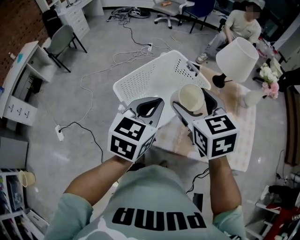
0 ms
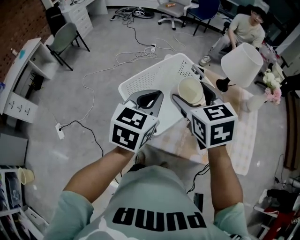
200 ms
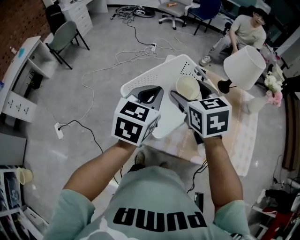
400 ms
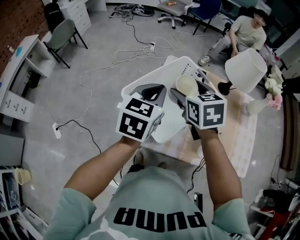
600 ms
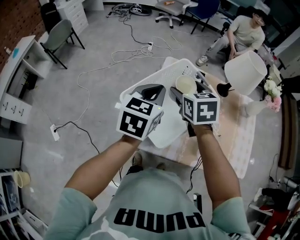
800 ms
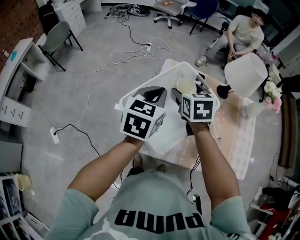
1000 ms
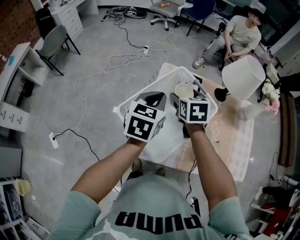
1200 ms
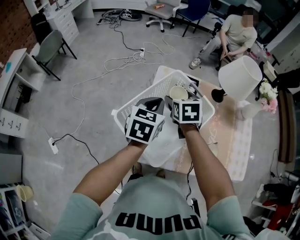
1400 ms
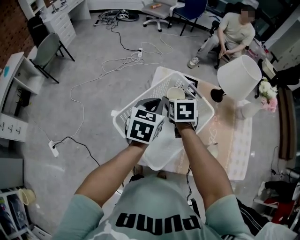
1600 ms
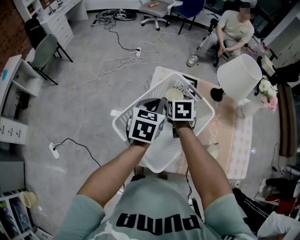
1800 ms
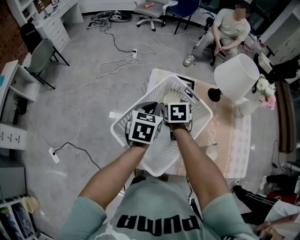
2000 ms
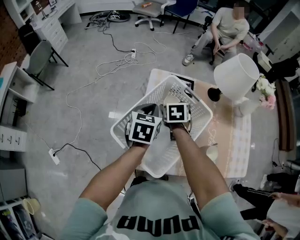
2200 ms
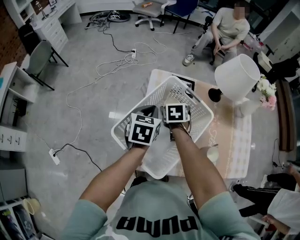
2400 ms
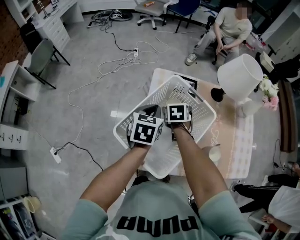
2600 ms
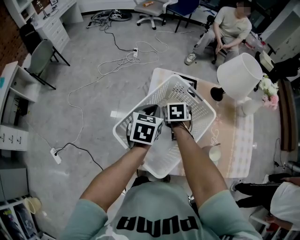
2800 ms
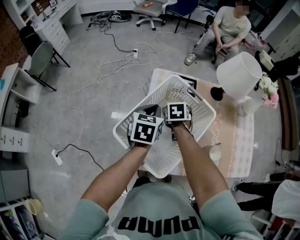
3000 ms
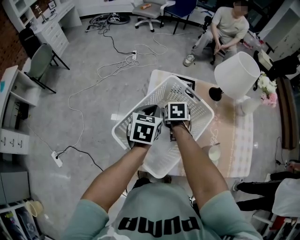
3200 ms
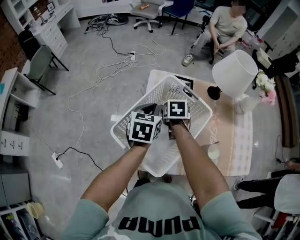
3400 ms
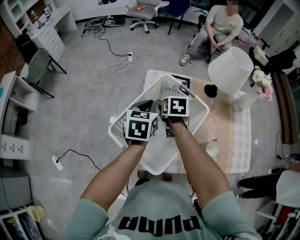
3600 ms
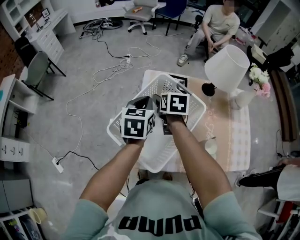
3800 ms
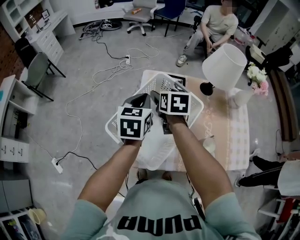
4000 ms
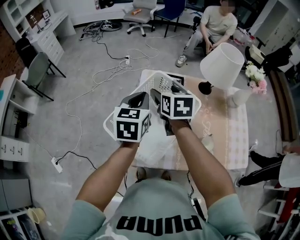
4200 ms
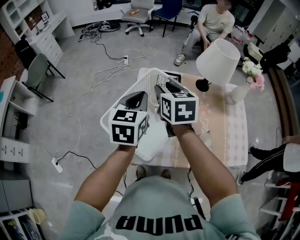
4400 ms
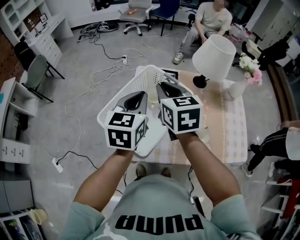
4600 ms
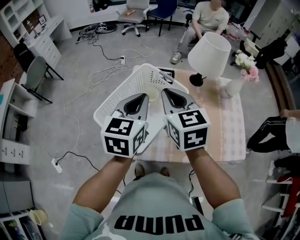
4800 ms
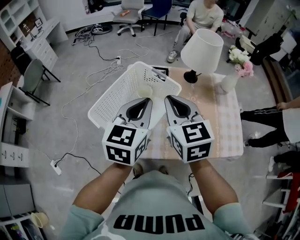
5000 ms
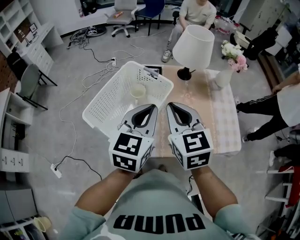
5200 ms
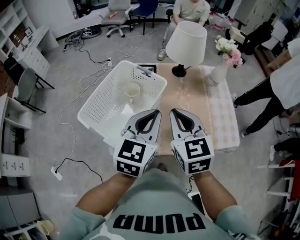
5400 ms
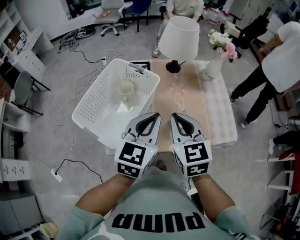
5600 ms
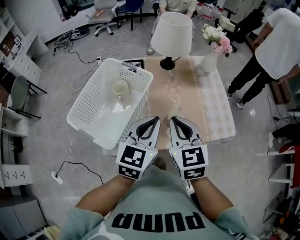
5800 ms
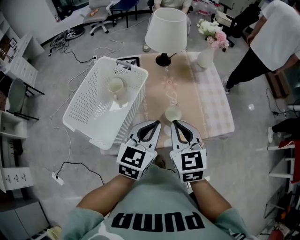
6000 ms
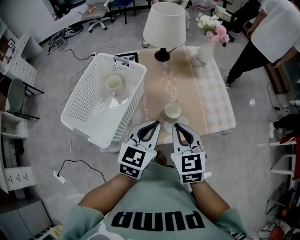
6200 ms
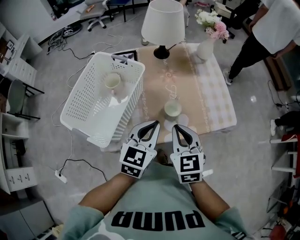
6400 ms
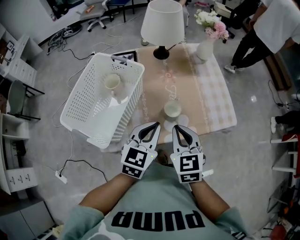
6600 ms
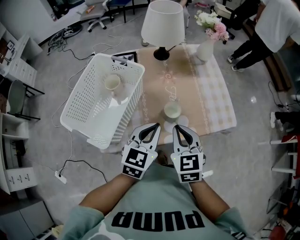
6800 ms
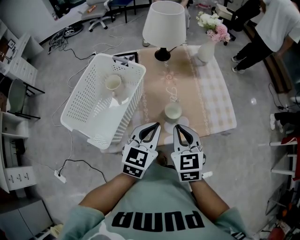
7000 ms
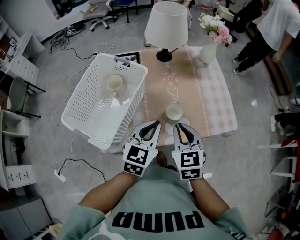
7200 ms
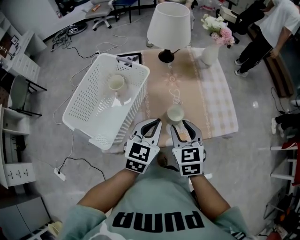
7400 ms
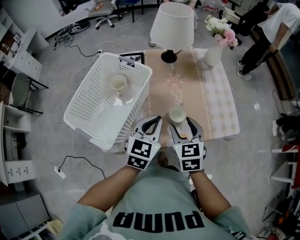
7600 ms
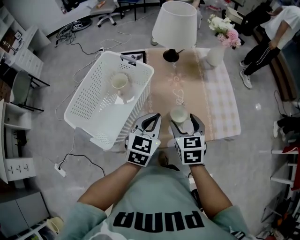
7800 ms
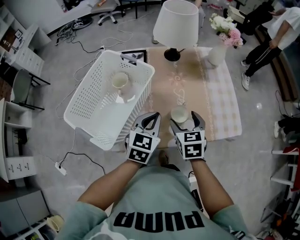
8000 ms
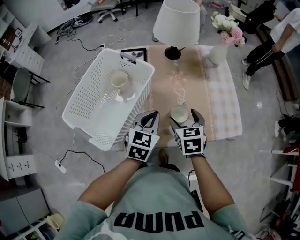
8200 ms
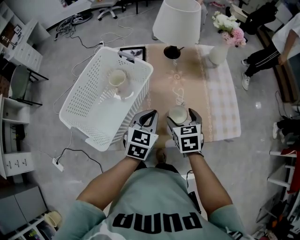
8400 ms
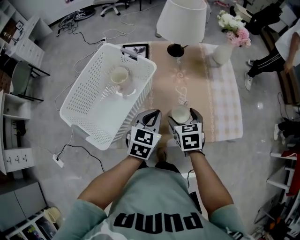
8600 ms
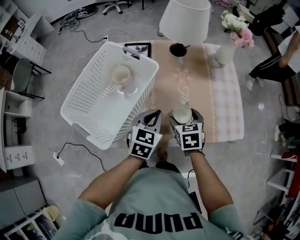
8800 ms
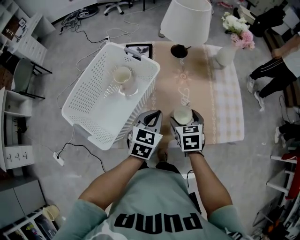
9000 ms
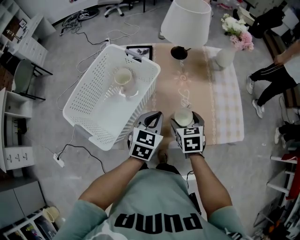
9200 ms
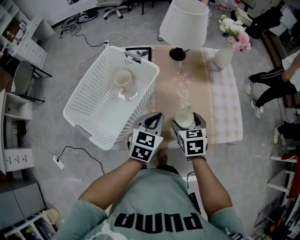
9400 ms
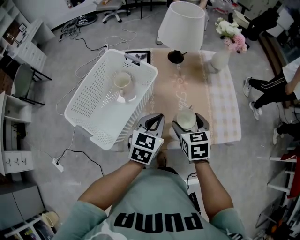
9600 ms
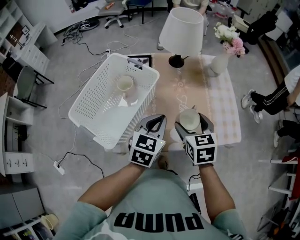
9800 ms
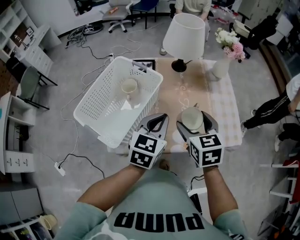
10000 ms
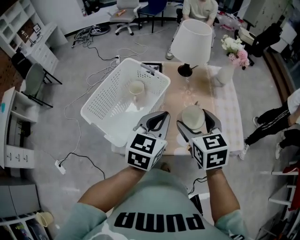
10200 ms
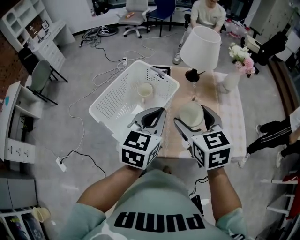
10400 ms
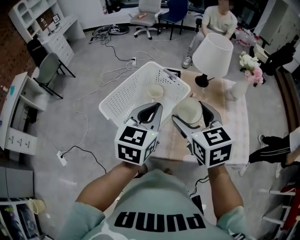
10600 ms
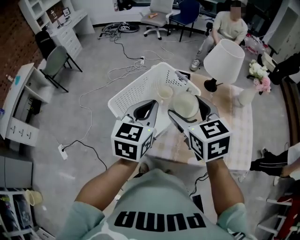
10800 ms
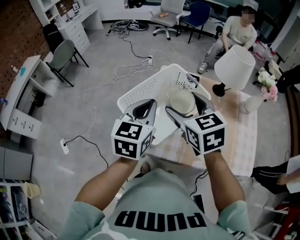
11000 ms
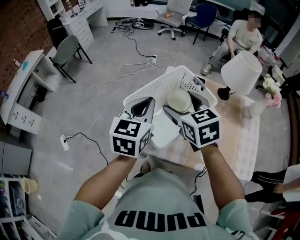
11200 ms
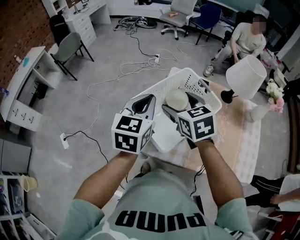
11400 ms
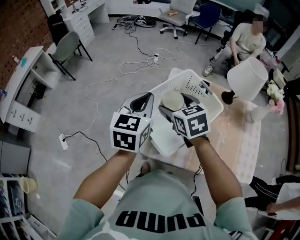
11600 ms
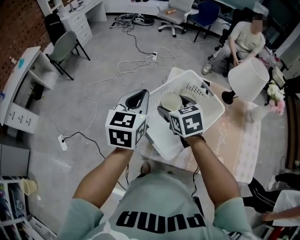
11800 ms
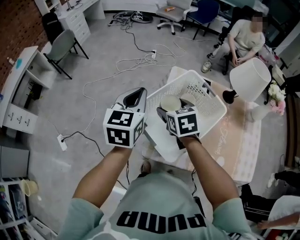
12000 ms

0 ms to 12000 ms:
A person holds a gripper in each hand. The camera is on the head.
0 ms to 1600 ms: The two grippers go some 20 cm forward and downward. The right gripper turns by some 30 degrees.
1600 ms to 3000 ms: The left gripper moves approximately 5 cm. The right gripper goes roughly 10 cm downward.
3000 ms to 4400 ms: The right gripper heads upward, covering some 20 cm, tips its fingers upward by some 30 degrees, and closes. Meanwhile the left gripper goes approximately 10 cm upward.
4400 ms to 6000 ms: The two grippers go approximately 30 cm to the right and backward. The left gripper turns by roughly 30 degrees. Meanwhile the right gripper closes.
6000 ms to 7600 ms: The right gripper travels downward by roughly 10 cm, and opens its fingers. The left gripper moves downward, approximately 5 cm.
7600 ms to 9000 ms: The left gripper moves downward, some 5 cm. The right gripper moves downward and forward, roughly 10 cm, and opens its fingers.
9000 ms to 10400 ms: Both grippers travel together upward, roughly 20 cm. The right gripper rotates about 20 degrees.
10400 ms to 12000 ms: The left gripper moves to the left and forward, about 30 cm, and swivels approximately 20 degrees, while the right gripper travels to the left, forward and downward by some 30 cm, and turns by about 20 degrees.

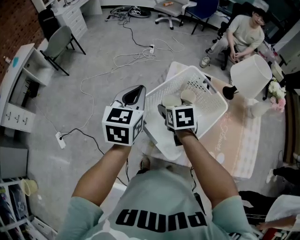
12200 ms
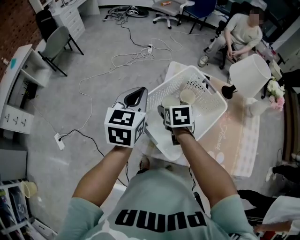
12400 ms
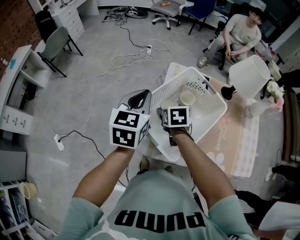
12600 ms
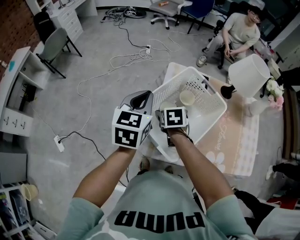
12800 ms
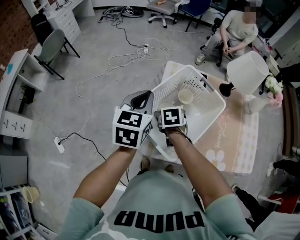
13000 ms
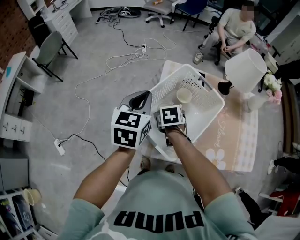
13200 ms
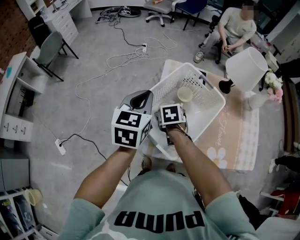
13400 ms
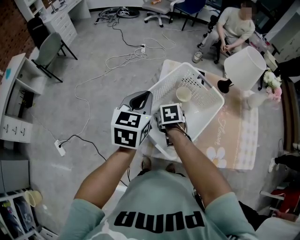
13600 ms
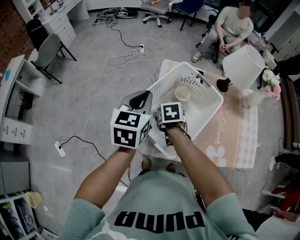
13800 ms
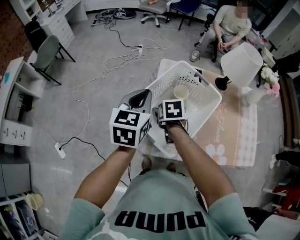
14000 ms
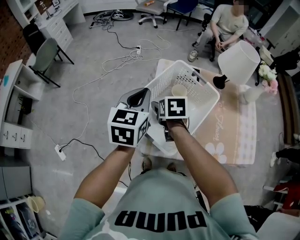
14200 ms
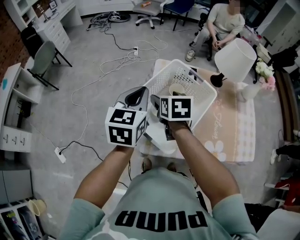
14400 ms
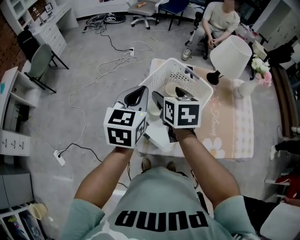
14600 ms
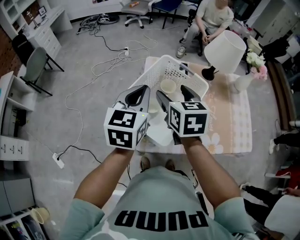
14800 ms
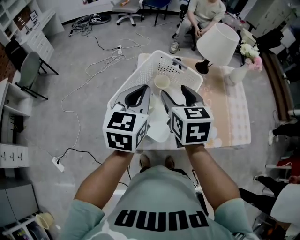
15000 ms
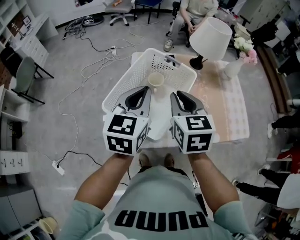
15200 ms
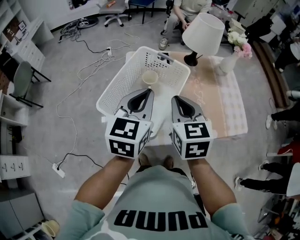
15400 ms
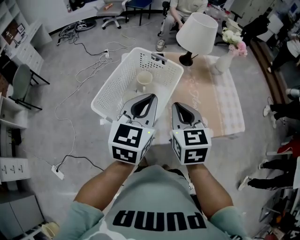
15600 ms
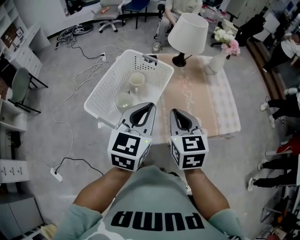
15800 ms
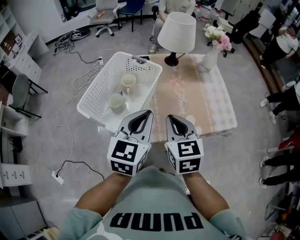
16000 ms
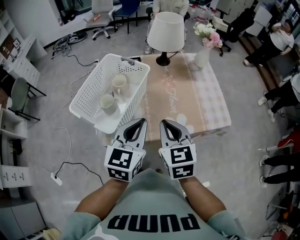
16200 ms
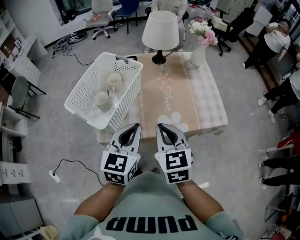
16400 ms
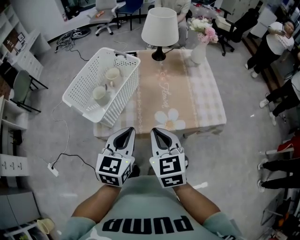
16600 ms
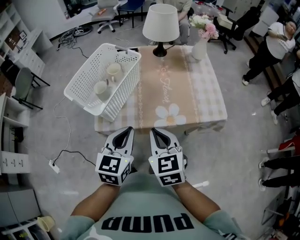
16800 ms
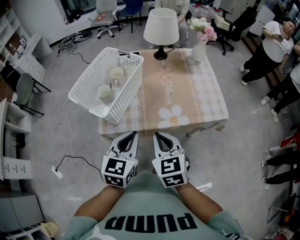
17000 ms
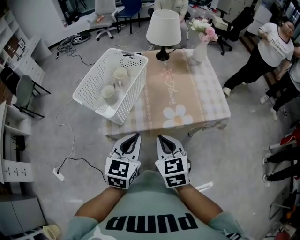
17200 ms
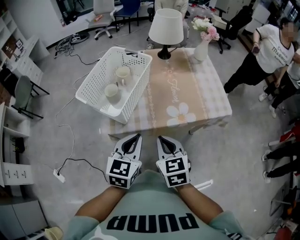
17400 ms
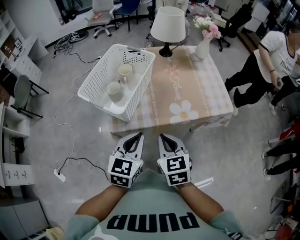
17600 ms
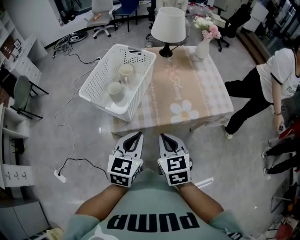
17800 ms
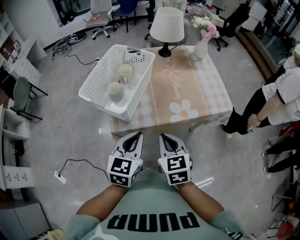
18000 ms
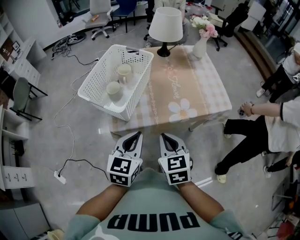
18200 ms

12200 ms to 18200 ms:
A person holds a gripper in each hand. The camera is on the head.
12200 ms to 13800 ms: The right gripper is displaced downward by roughly 10 cm.
13800 ms to 15200 ms: The left gripper goes about 10 cm to the right, while the right gripper travels upward and to the right by about 25 cm, tips its fingers upward by roughly 40 degrees, and closes its fingers.
15200 ms to 16600 ms: The grippers both shift to the right and backward by roughly 25 cm.
16600 ms to 18200 ms: The right gripper travels backward and to the left by some 10 cm; the left gripper goes about 10 cm to the left and backward.

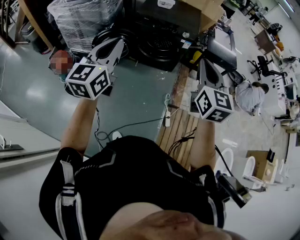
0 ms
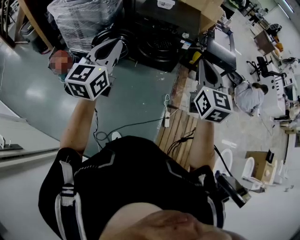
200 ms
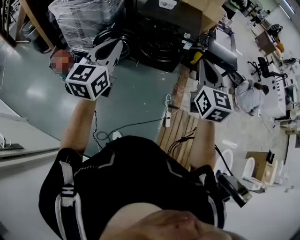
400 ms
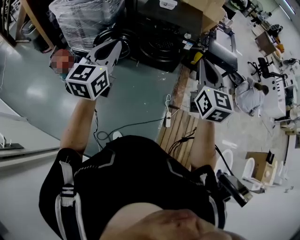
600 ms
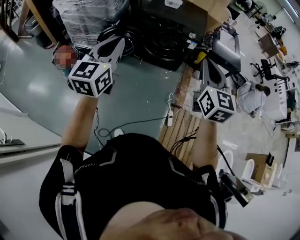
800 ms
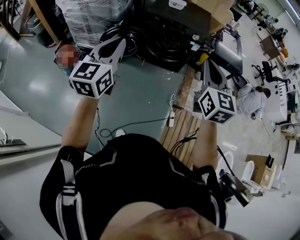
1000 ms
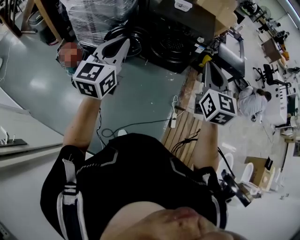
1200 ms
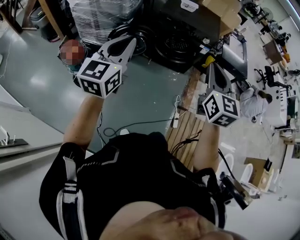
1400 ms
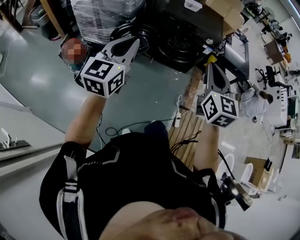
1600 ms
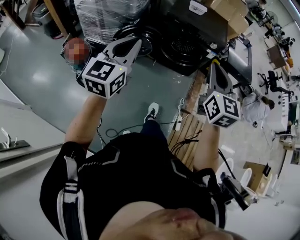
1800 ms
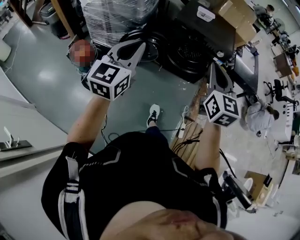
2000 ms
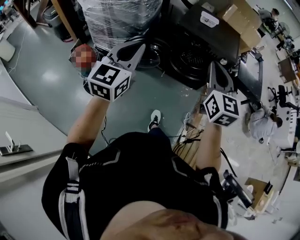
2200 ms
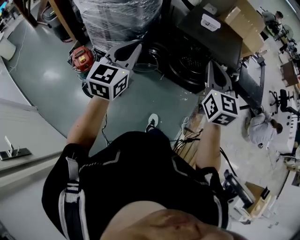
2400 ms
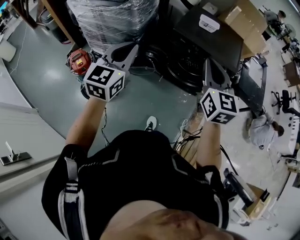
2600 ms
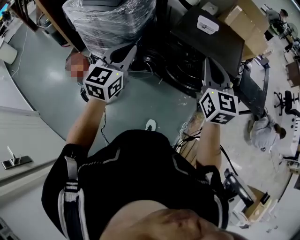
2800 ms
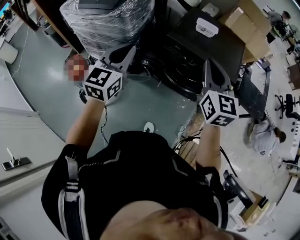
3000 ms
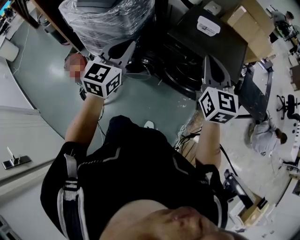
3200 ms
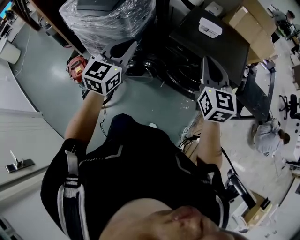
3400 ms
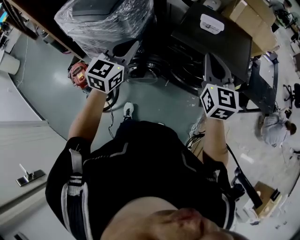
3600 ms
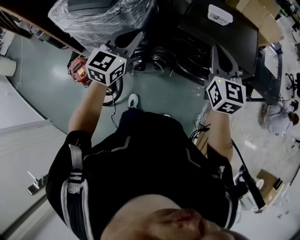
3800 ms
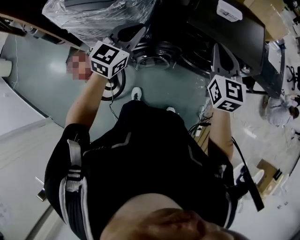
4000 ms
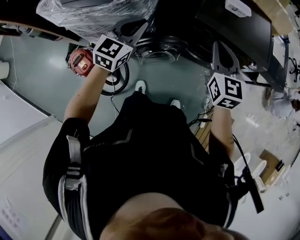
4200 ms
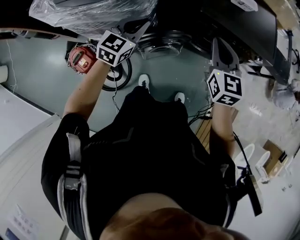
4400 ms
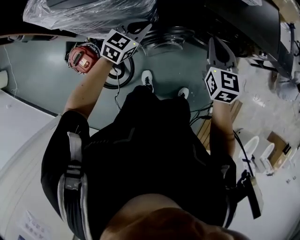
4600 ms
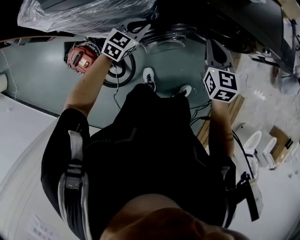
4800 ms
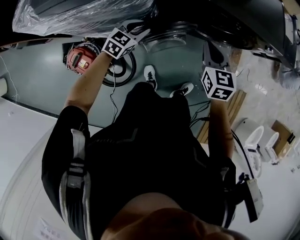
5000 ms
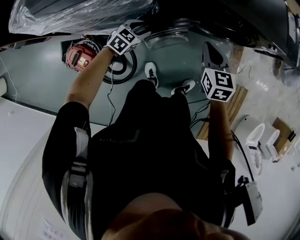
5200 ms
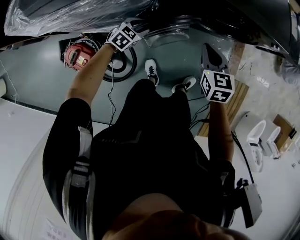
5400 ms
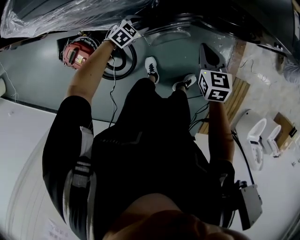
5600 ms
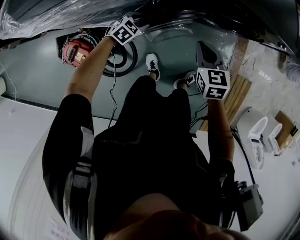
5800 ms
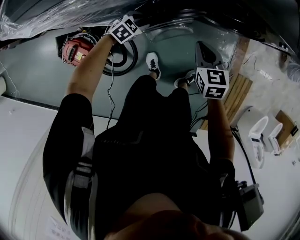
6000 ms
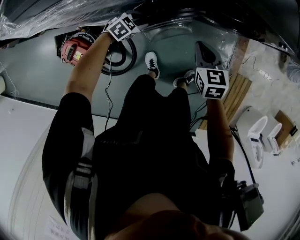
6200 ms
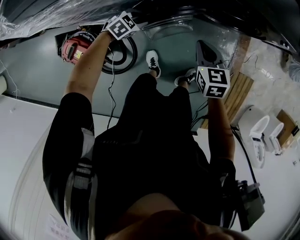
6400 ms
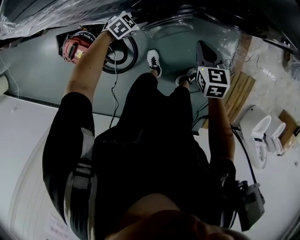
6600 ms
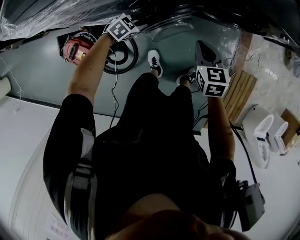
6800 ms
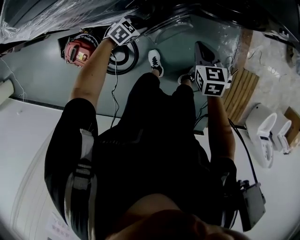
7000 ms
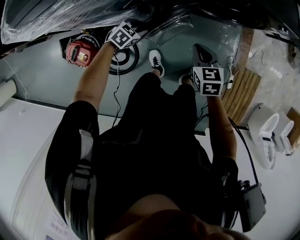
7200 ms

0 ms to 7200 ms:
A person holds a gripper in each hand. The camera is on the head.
0 ms to 1400 ms: Both grippers travel together to the left, roughly 10 cm.
1400 ms to 2800 ms: The grippers both shift forward by some 30 cm.
2800 ms to 4400 ms: The left gripper shifts some 35 cm forward, downward and to the left, and swivels some 30 degrees; the right gripper travels forward, to the left and downward by about 30 cm.
4400 ms to 5800 ms: The two grippers go approximately 30 cm downward. The left gripper points its fingers some 30 degrees further downward, and opens its fingers. The right gripper changes its angle by roughly 30 degrees.
5800 ms to 7200 ms: Both grippers travel together to the right, roughly 5 cm.
